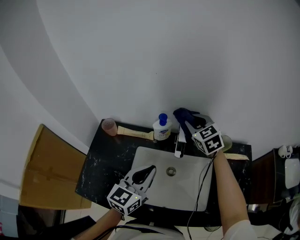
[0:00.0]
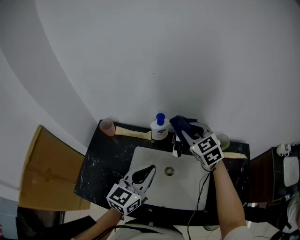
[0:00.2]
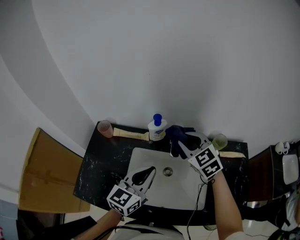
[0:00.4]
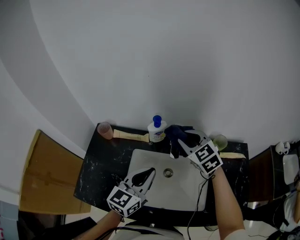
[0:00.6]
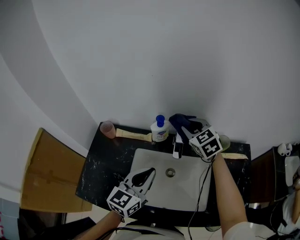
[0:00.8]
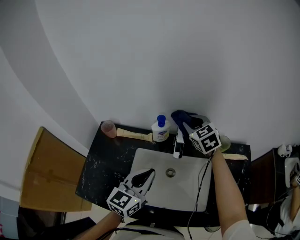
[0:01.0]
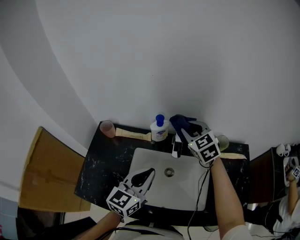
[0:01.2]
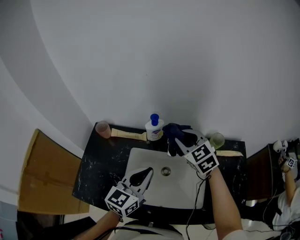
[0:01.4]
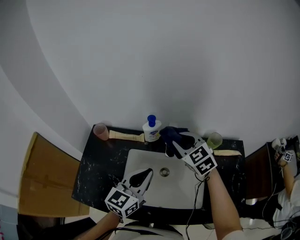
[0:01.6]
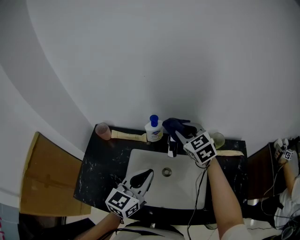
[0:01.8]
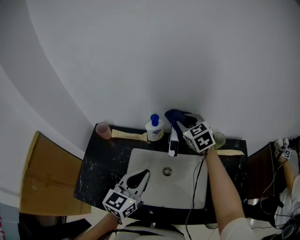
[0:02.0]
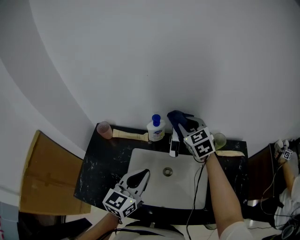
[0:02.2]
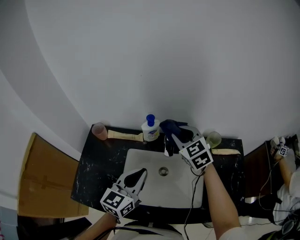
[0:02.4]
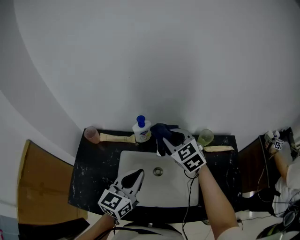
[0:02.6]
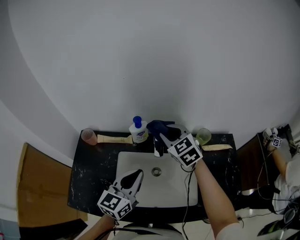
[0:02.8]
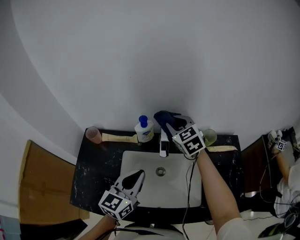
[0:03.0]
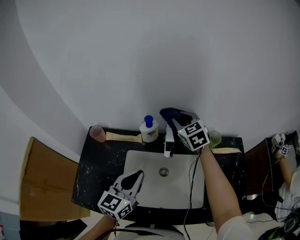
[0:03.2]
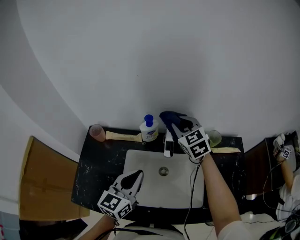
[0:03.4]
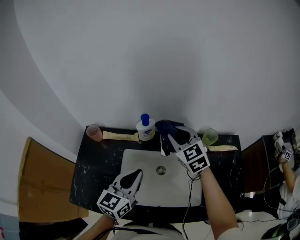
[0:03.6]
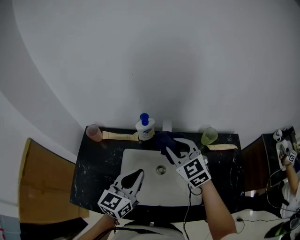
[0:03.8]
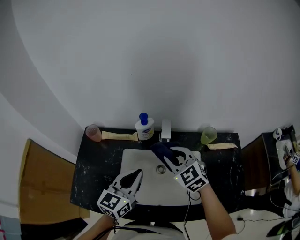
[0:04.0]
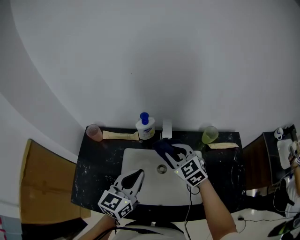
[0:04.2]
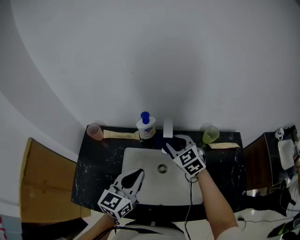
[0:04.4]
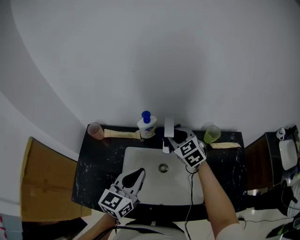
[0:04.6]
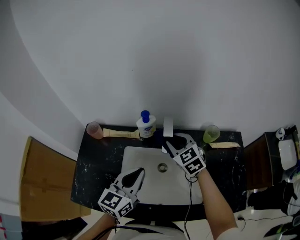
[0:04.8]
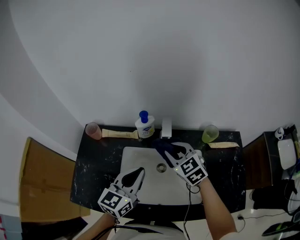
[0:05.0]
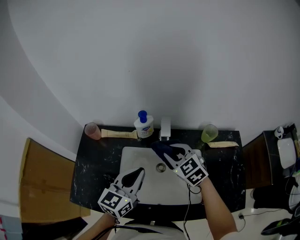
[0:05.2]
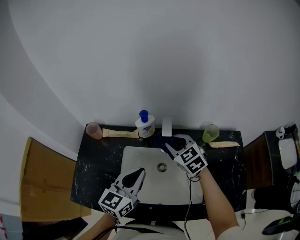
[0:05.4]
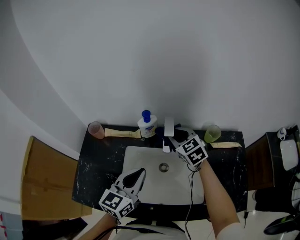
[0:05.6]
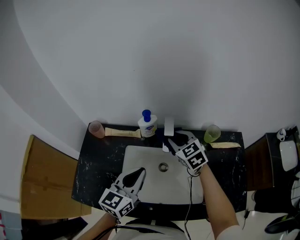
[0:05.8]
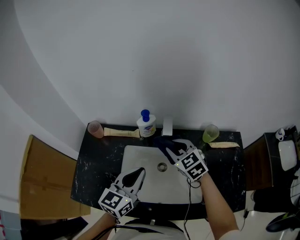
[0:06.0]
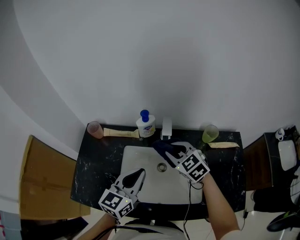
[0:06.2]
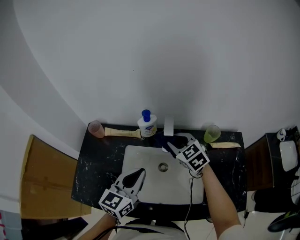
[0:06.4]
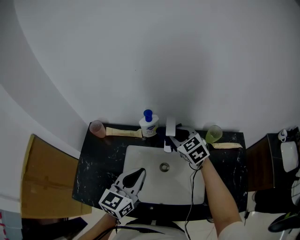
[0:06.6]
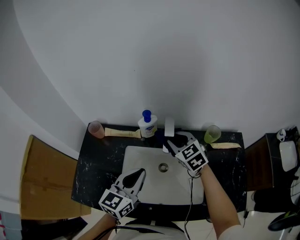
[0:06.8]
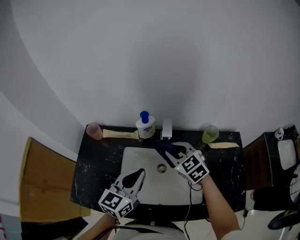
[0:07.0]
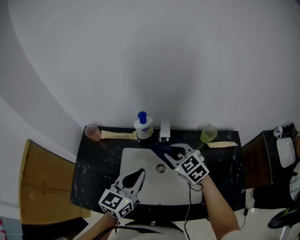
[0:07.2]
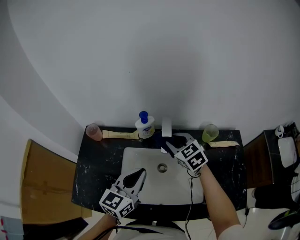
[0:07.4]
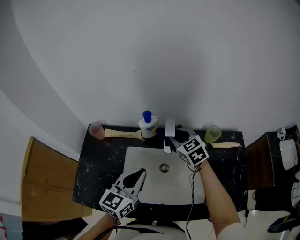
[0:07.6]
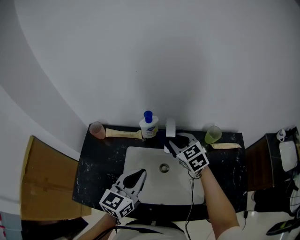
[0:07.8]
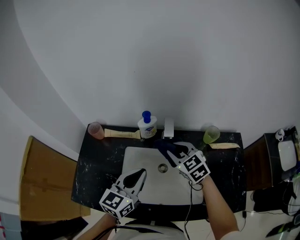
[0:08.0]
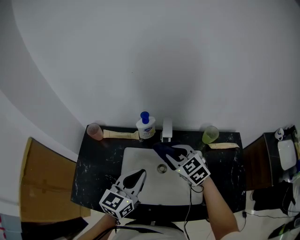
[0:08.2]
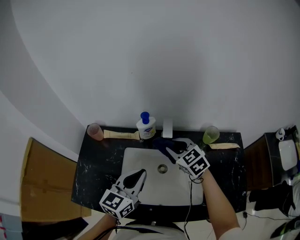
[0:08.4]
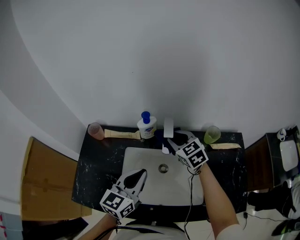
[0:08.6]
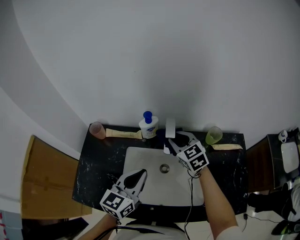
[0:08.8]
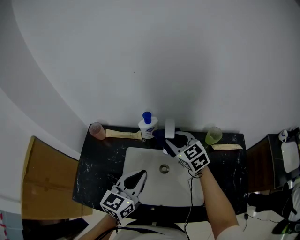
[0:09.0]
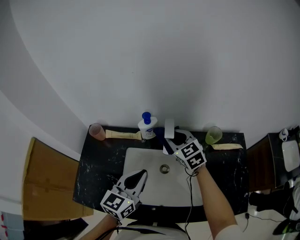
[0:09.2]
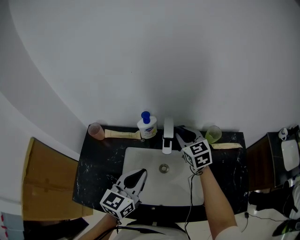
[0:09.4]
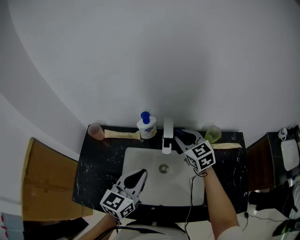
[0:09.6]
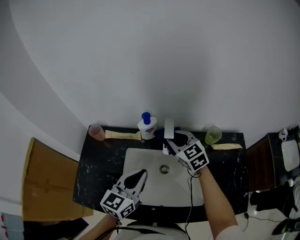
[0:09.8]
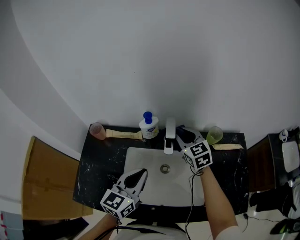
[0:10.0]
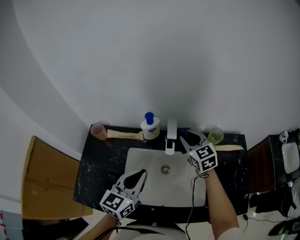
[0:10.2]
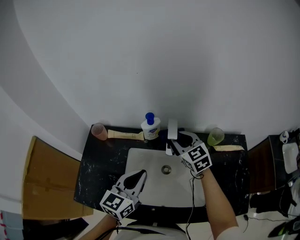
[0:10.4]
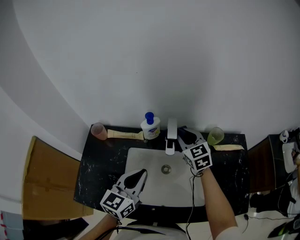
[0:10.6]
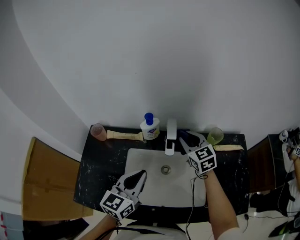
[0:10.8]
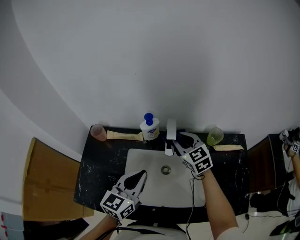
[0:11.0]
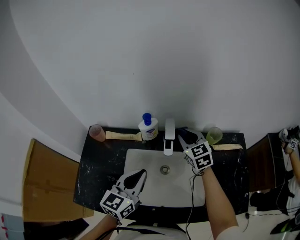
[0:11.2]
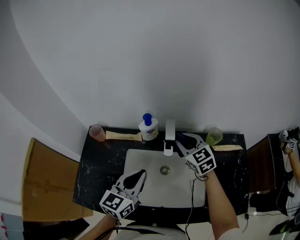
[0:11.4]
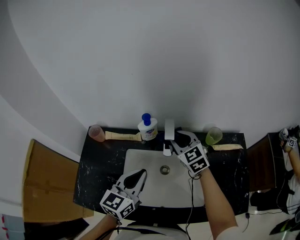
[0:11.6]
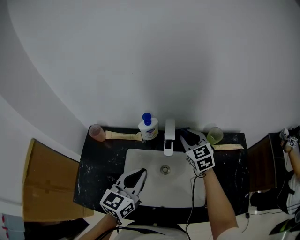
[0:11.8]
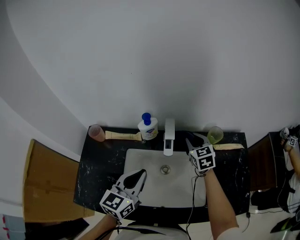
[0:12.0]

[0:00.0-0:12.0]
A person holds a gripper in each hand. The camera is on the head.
0:00.0 to 0:01.6: The right gripper goes forward and backward, about 10 cm each way, reversing 2 times.
0:01.6 to 0:03.0: The right gripper swings forward and backward, approximately 10 cm each way, with 2 reversals.
0:03.0 to 0:04.4: The right gripper moves backward and downward, some 10 cm.
0:04.4 to 0:06.0: The right gripper swings forward and backward, some 10 cm each way, with 2 reversals.
0:06.0 to 0:07.6: The right gripper moves forward and backward over roughly 10 cm, changing direction 2 times.
0:07.6 to 0:09.0: The right gripper goes backward and returns, approximately 10 cm each way.
0:09.0 to 0:10.4: The right gripper goes left and right, roughly 5 cm each way, reversing 3 times.
0:10.4 to 0:12.0: The right gripper moves left and right over roughly 10 cm, changing direction 2 times.

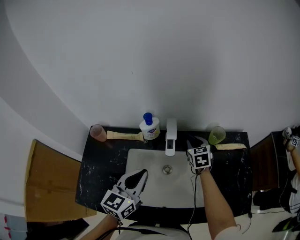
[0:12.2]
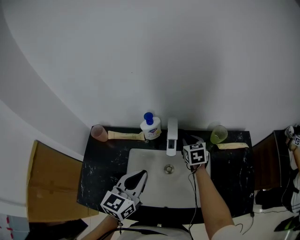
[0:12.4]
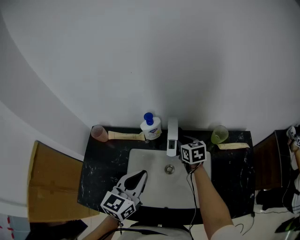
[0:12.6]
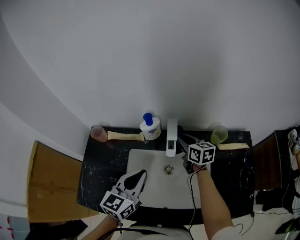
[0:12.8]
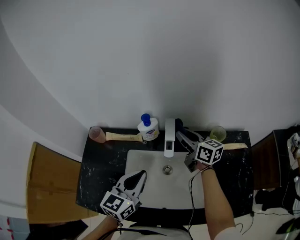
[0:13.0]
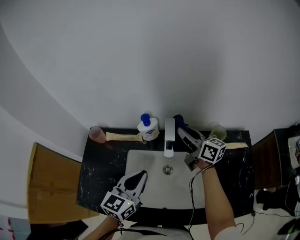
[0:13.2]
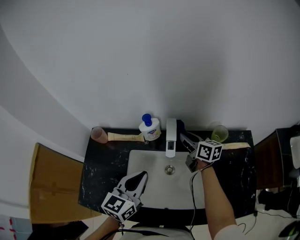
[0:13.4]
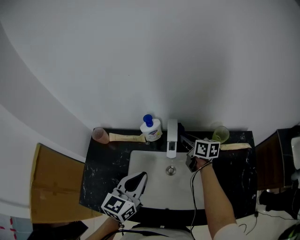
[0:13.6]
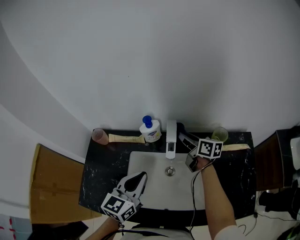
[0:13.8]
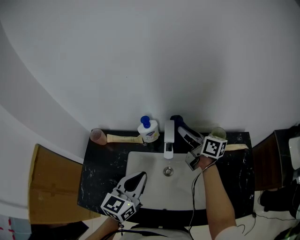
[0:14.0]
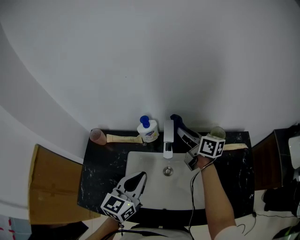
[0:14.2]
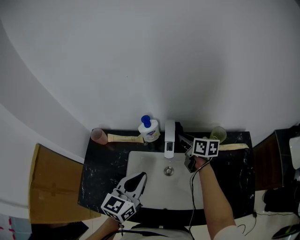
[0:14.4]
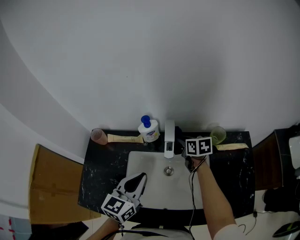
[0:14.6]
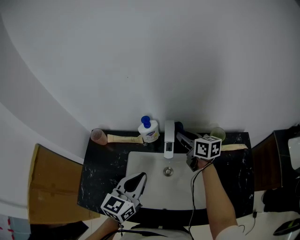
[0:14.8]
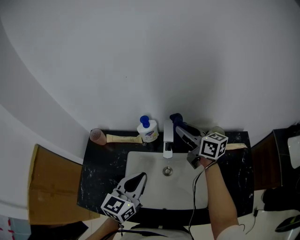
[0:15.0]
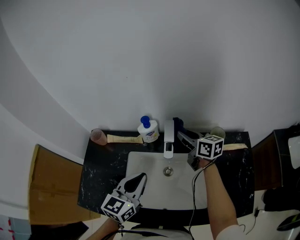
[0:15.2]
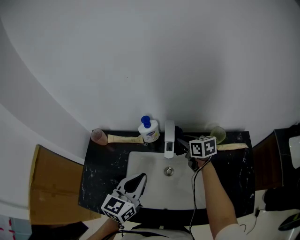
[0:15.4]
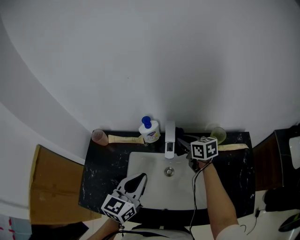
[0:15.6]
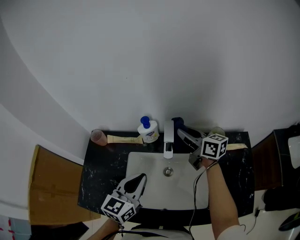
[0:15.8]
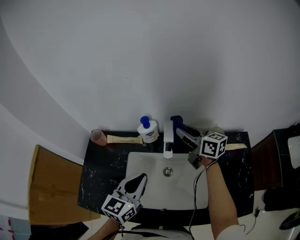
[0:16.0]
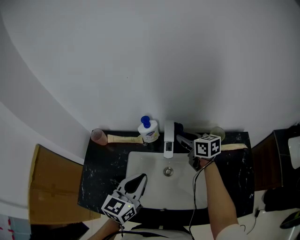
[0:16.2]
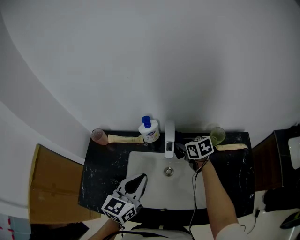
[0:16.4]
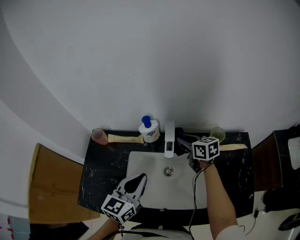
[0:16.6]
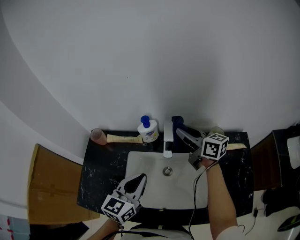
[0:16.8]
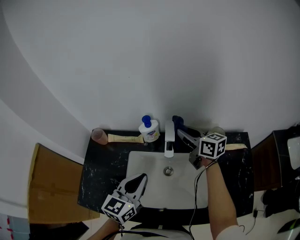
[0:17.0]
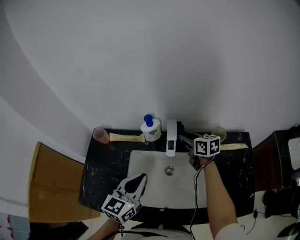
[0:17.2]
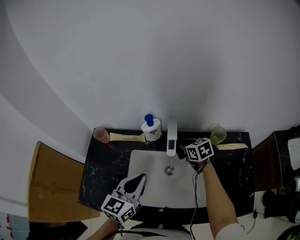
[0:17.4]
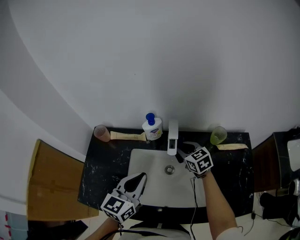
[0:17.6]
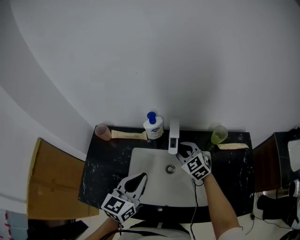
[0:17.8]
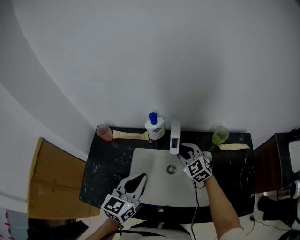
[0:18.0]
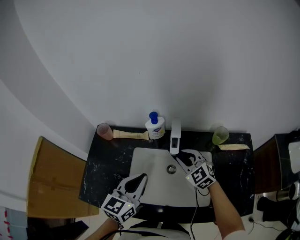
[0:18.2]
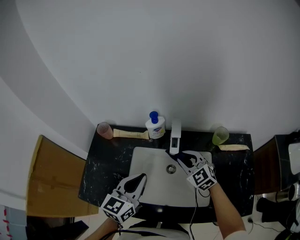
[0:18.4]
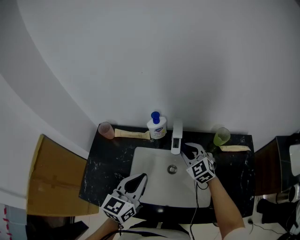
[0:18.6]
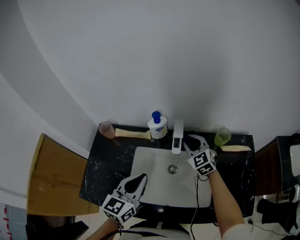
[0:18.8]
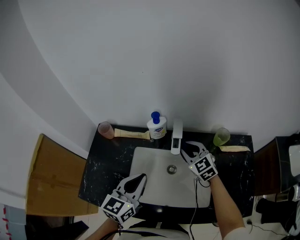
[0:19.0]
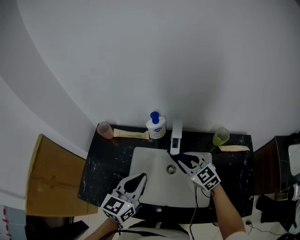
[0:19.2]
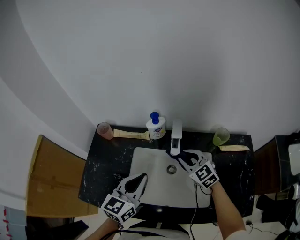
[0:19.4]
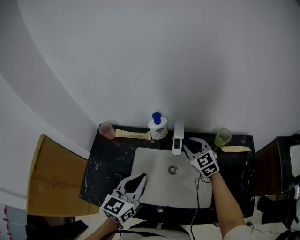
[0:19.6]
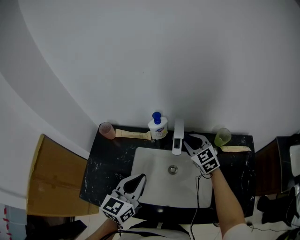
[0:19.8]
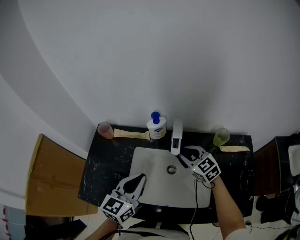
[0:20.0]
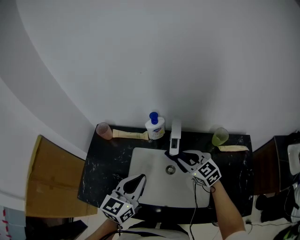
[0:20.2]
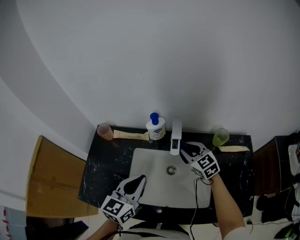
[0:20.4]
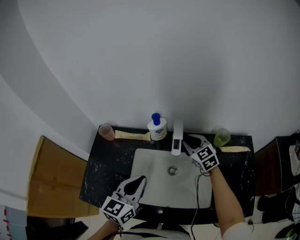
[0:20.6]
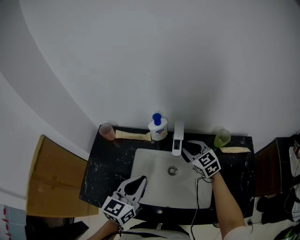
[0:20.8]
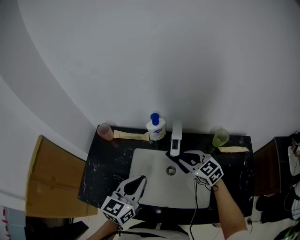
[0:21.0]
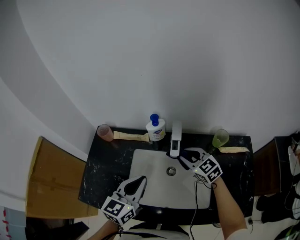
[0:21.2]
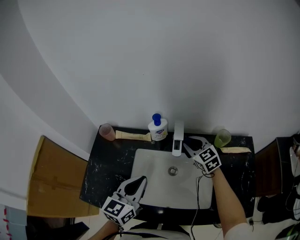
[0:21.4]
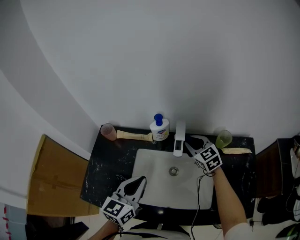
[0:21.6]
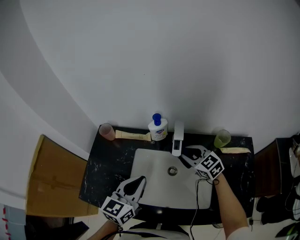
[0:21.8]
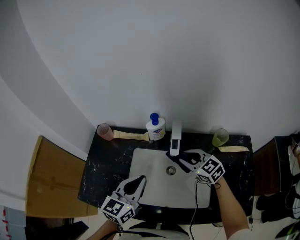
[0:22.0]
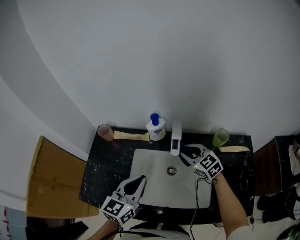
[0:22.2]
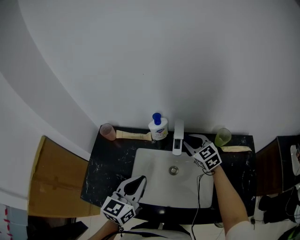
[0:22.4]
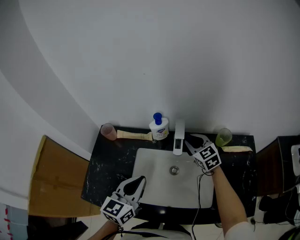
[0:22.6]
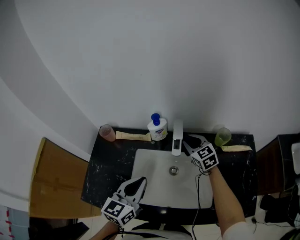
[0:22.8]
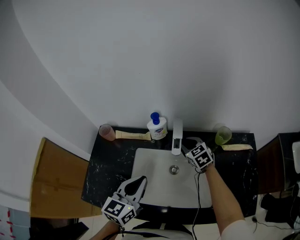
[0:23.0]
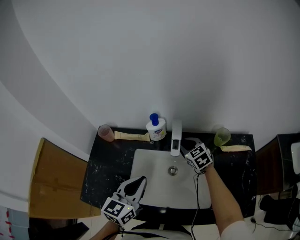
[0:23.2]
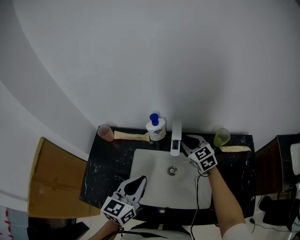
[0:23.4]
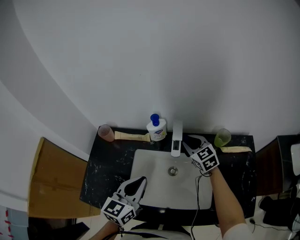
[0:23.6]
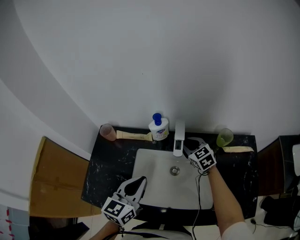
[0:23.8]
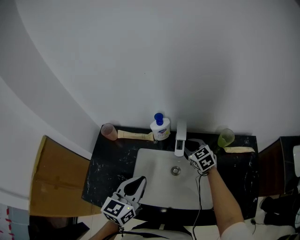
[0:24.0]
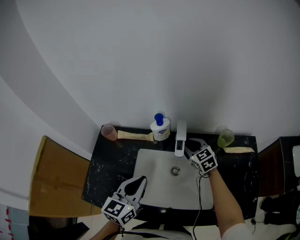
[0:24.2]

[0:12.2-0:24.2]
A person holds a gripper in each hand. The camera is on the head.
0:12.2 to 0:13.8: The right gripper goes up and down, roughly 15 cm each way, reversing 2 times, and changes its angle by roughly 50 degrees.
0:13.8 to 0:15.2: The right gripper swings up and down, about 15 cm each way, with 3 reversals.
0:15.2 to 0:16.6: The right gripper goes up and down, roughly 15 cm each way, reversing 3 times.
0:16.6 to 0:18.2: The right gripper goes up and down, approximately 15 cm each way, reversing 2 times, and rolls counterclockwise, seen from behind, by about 50 degrees.
0:18.2 to 0:19.8: The right gripper goes forward and backward, about 10 cm each way, reversing 2 times.
0:19.8 to 0:21.2: The right gripper goes forward and backward, roughly 10 cm each way, reversing 2 times.
0:21.2 to 0:22.6: The right gripper moves forward and backward over some 10 cm, changing direction 2 times.
0:22.6 to 0:24.2: The right gripper swings up and down, approximately 5 cm each way, with 2 reversals.
